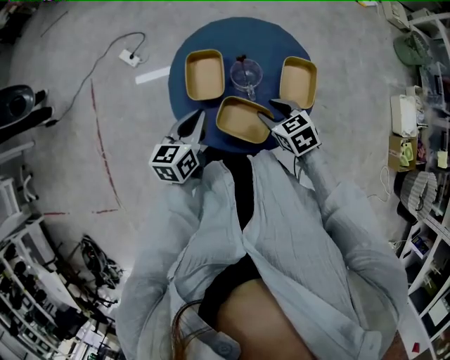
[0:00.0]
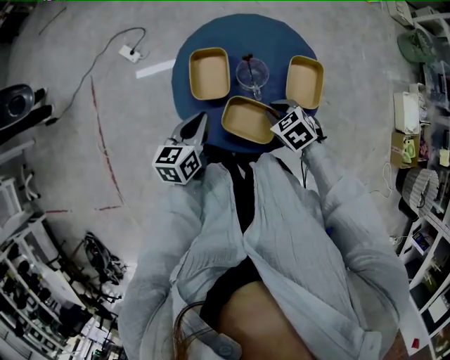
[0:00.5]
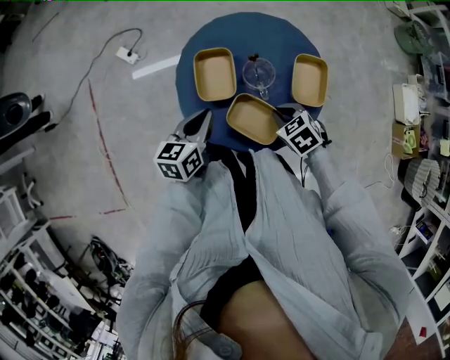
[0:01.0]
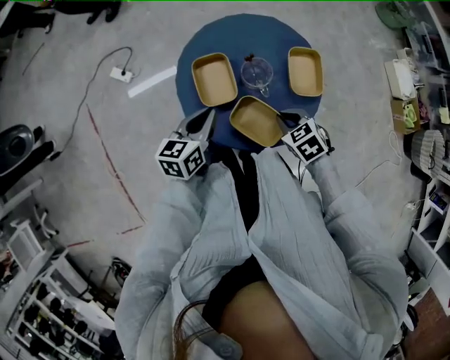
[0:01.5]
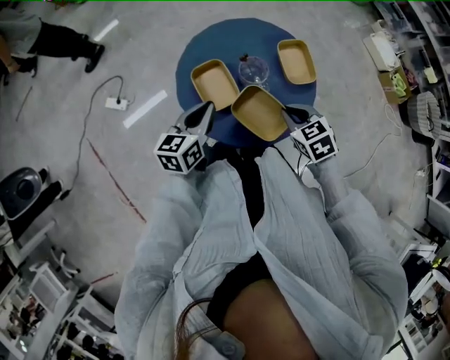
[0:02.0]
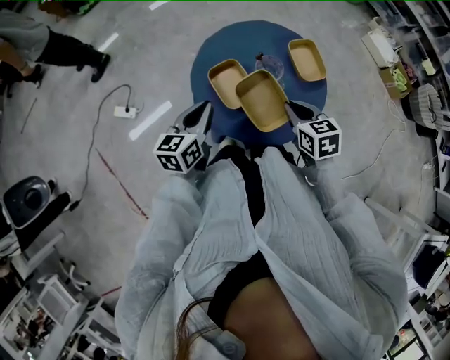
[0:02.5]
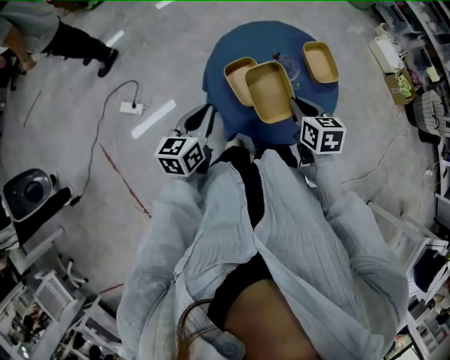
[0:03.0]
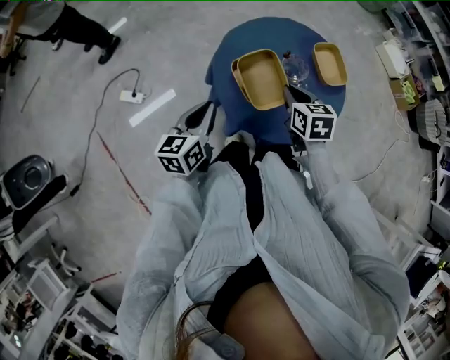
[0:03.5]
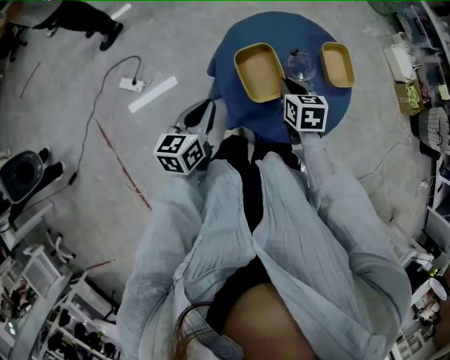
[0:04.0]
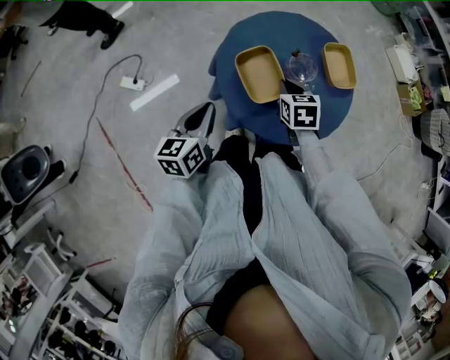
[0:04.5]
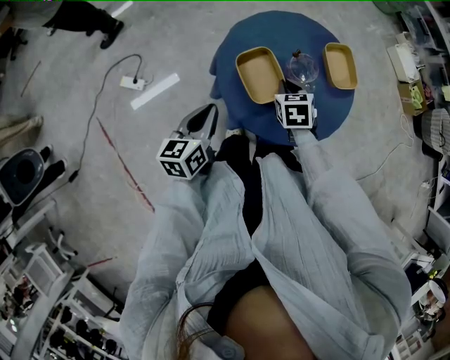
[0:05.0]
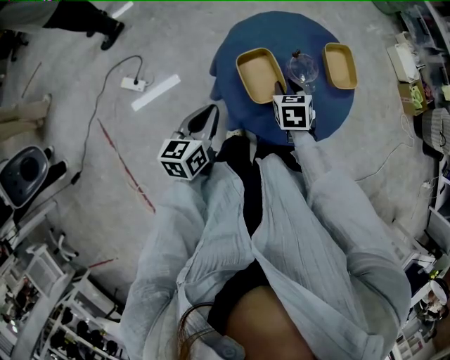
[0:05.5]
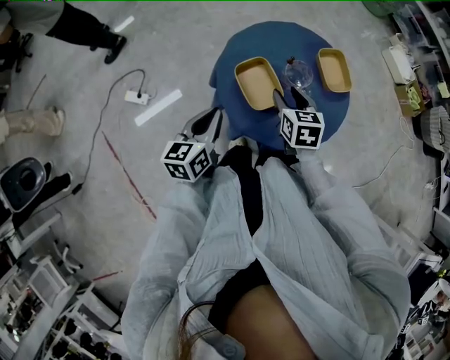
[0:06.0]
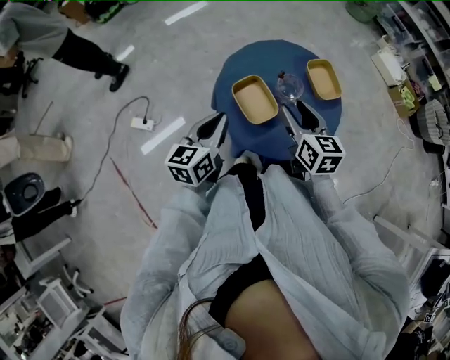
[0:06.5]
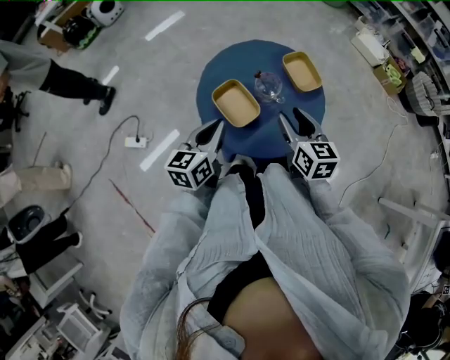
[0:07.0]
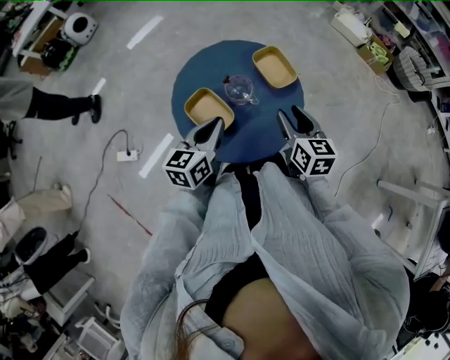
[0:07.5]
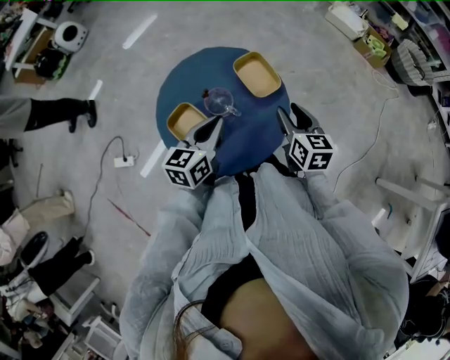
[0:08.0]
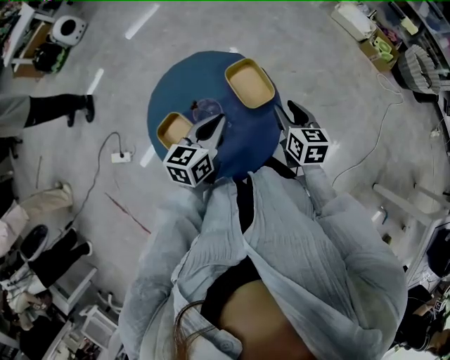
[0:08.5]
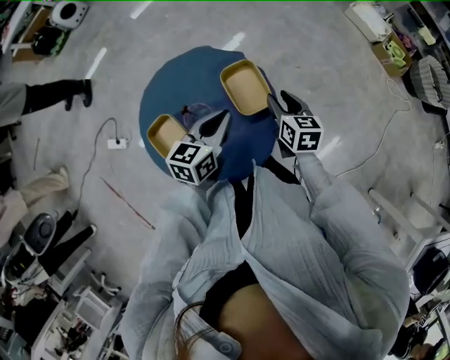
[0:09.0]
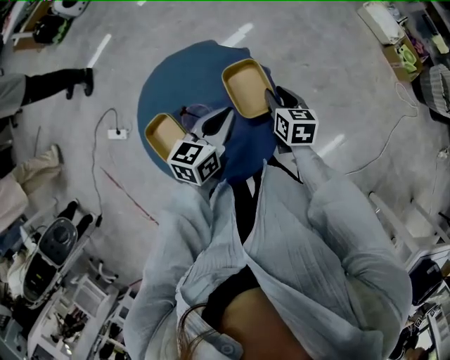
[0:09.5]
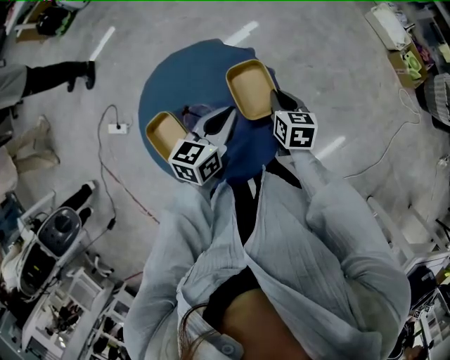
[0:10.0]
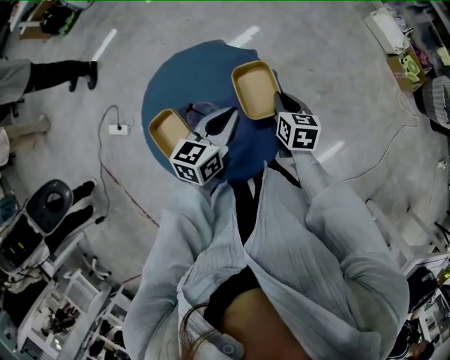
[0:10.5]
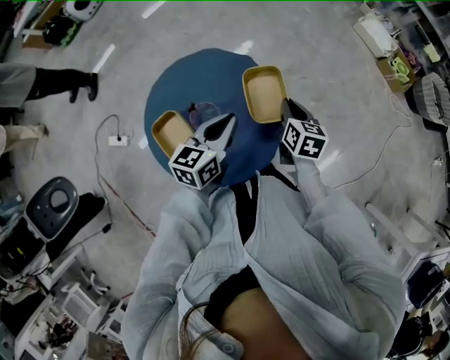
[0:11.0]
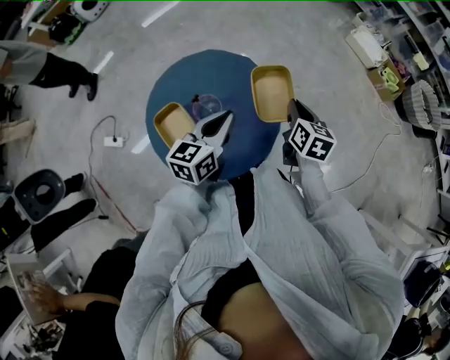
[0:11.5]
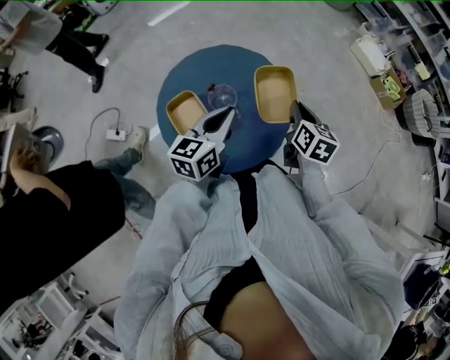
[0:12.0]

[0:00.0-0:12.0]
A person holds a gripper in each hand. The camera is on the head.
0:00.0 to 0:02.0: The right gripper ends up approximately 5 cm from where it was, swivels approximately 30 degrees, and closes. The left gripper changes place by about 10 cm, and turns by some 30 degrees.
0:02.0 to 0:04.0: The right gripper goes approximately 15 cm to the left and forward, and rotates roughly 30 degrees; the left gripper moves to the left, some 10 cm.
0:04.0 to 0:06.0: The right gripper opens.
0:06.0 to 0:08.0: The left gripper is displaced to the right and forward by approximately 20 cm, and rotates some 20 degrees. The right gripper moves to the right, some 20 cm, and swivels some 20 degrees.
0:08.0 to 0:10.0: The left gripper heads forward and to the right, covering approximately 15 cm; the right gripper heads forward and downward, covering roughly 20 cm, and closes.
0:10.0 to 0:12.0: The right gripper travels upward and backward by some 15 cm. The left gripper heads backward and upward, covering about 10 cm.

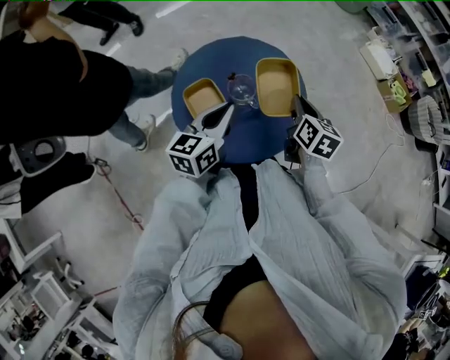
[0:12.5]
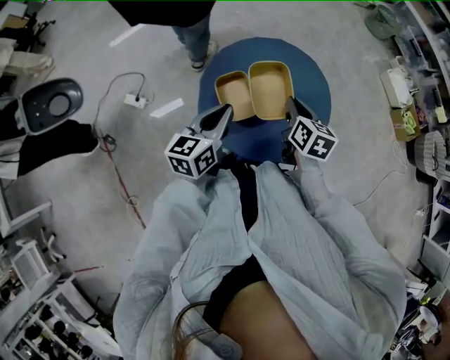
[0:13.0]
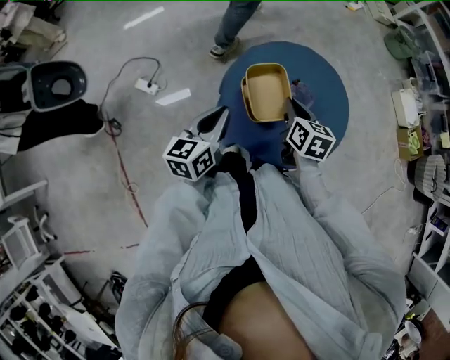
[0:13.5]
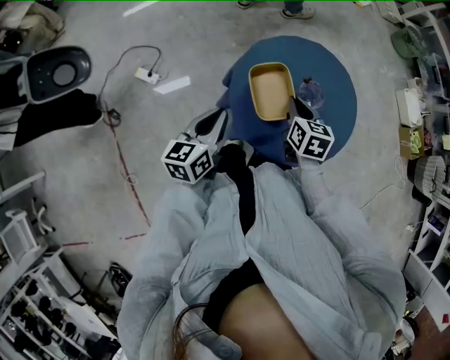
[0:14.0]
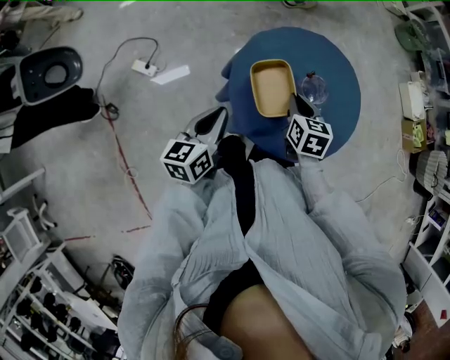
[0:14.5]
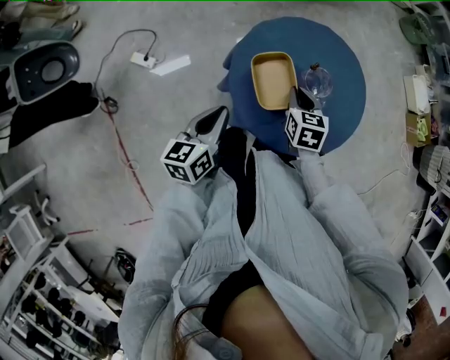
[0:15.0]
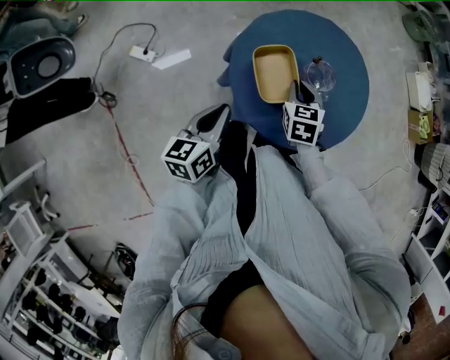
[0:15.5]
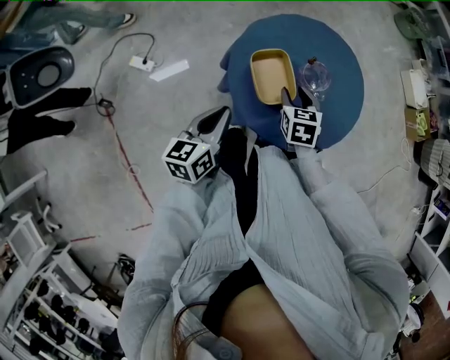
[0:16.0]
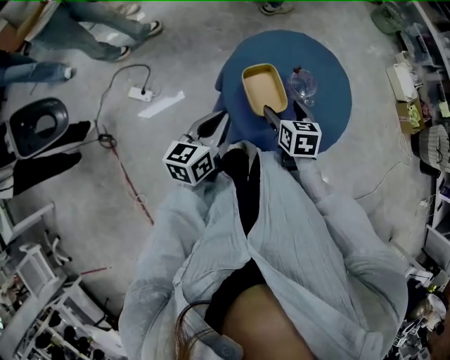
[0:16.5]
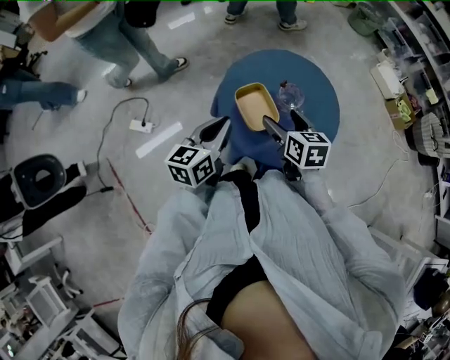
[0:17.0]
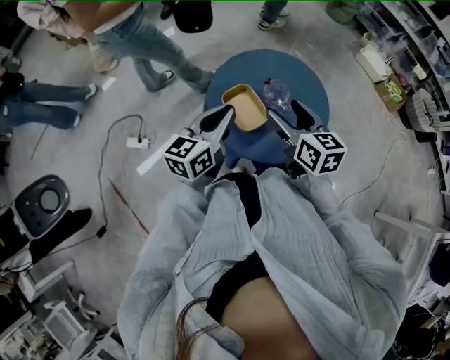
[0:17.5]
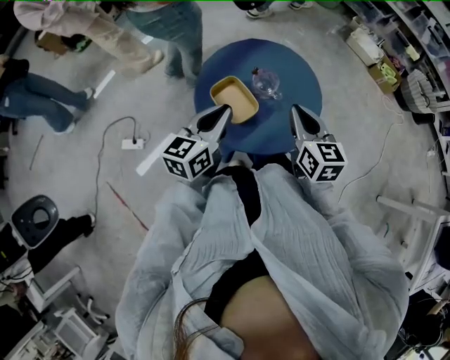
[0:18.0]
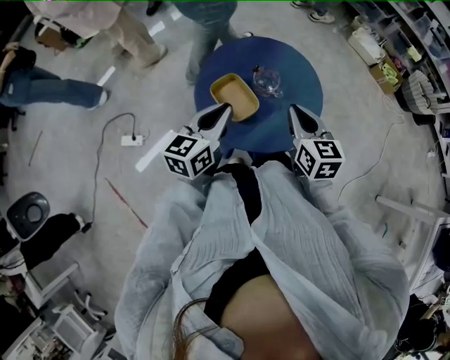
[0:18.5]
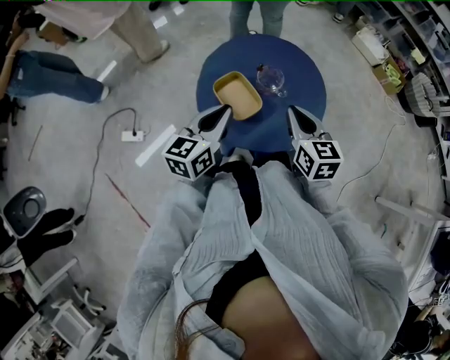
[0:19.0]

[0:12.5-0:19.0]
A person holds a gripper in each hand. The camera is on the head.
0:12.5 to 0:14.5: The two grippers go roughly 20 cm to the left. The right gripper swivels approximately 30 degrees. The left gripper turns by roughly 20 degrees.
0:14.5 to 0:17.0: The right gripper shifts about 5 cm upward, and opens up.
0:17.0 to 0:19.0: Both grippers move to the right, roughly 5 cm. The right gripper closes its fingers.

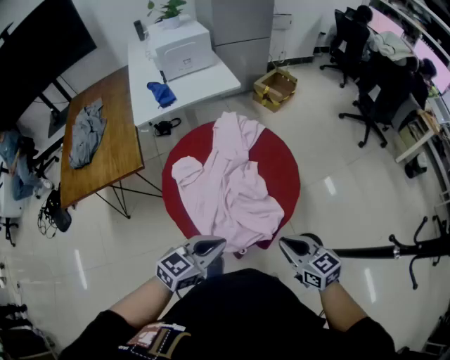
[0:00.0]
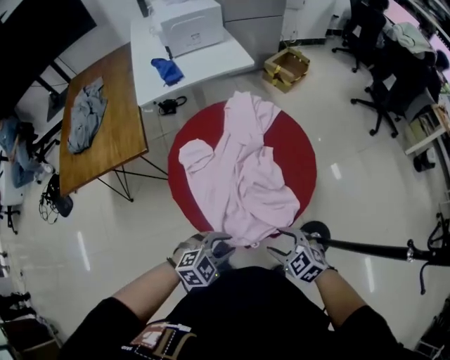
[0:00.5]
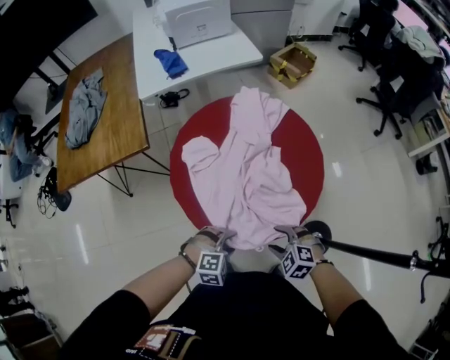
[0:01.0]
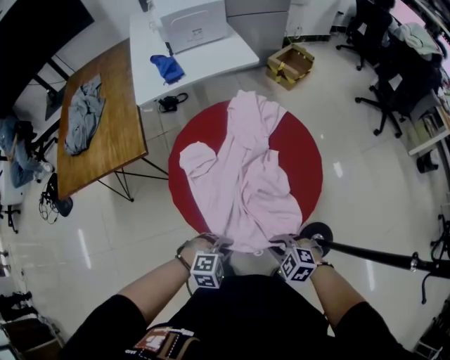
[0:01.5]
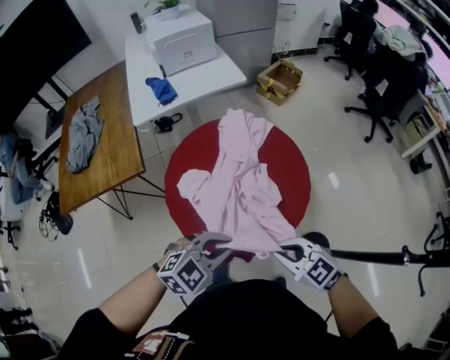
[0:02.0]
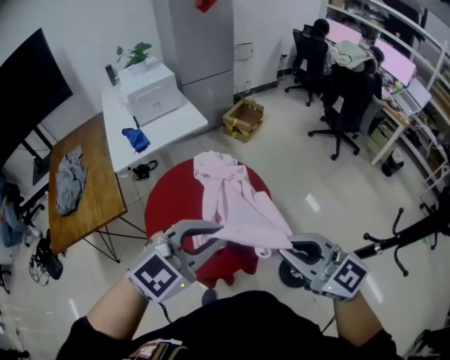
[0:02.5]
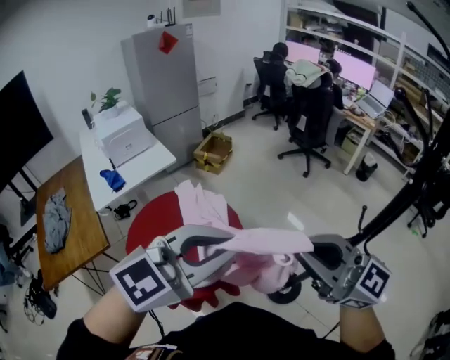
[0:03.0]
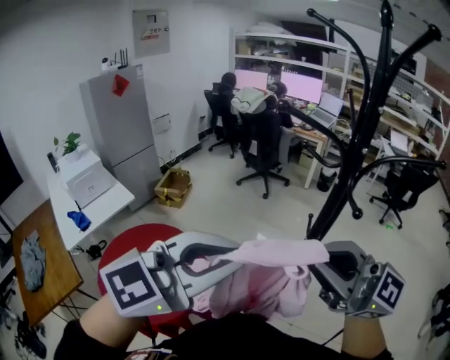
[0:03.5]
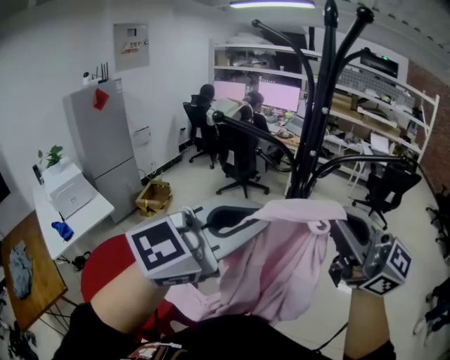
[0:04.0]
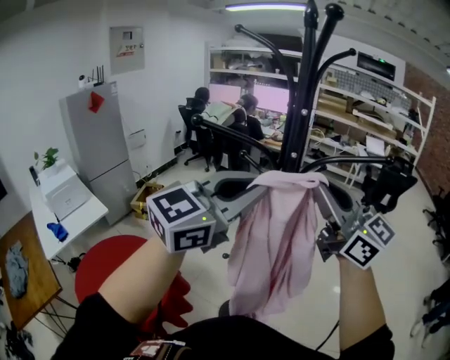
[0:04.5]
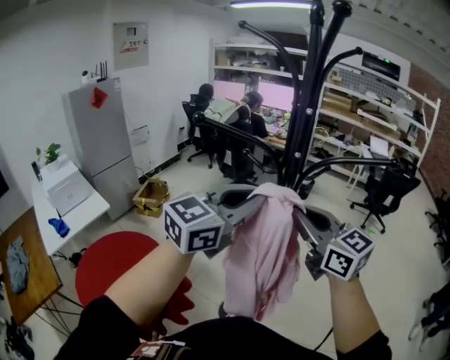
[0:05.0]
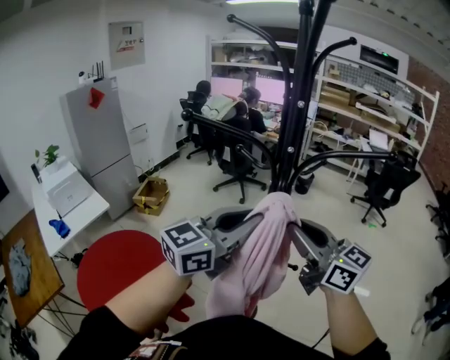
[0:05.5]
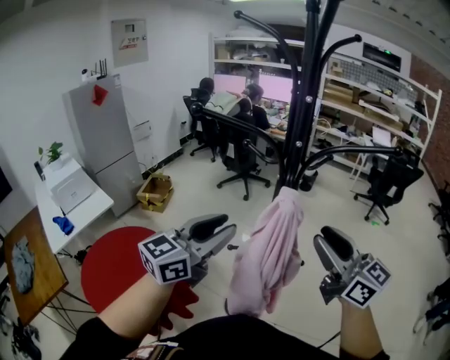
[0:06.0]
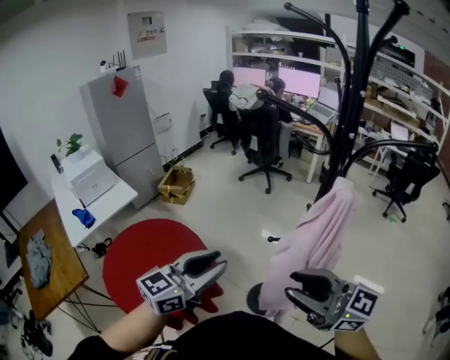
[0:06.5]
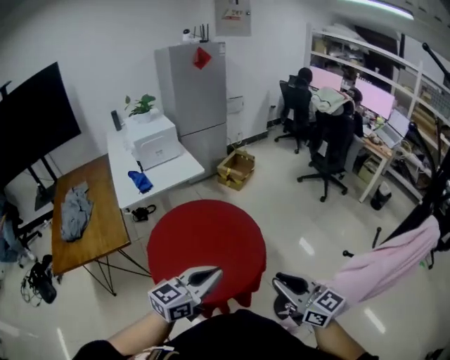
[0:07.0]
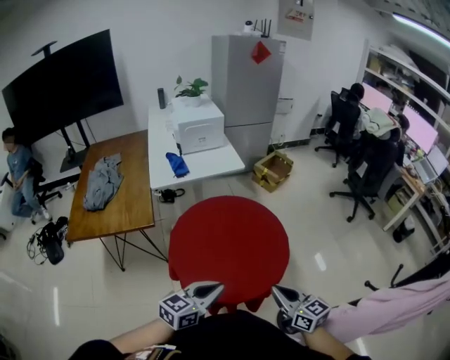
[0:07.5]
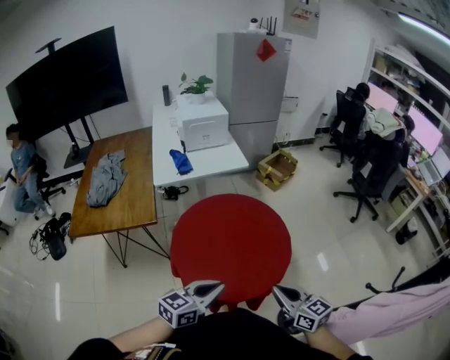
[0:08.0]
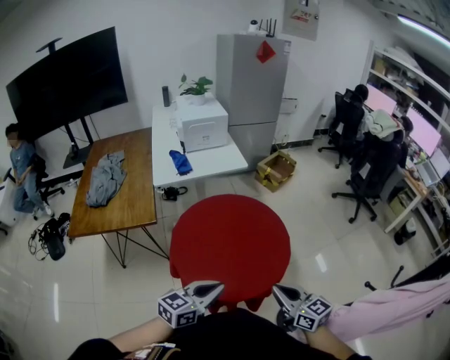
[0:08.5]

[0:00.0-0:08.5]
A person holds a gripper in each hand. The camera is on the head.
0:00.0 to 0:02.0: The right gripper shifts approximately 5 cm to the left, goes downward and returns, approximately 15 cm each way, swivels roughly 30 degrees, and opens, then closes again. The left gripper travels downward and back again, about 20 cm each way, rotates some 30 degrees, and opens, then closes again.
0:02.0 to 0:04.0: The pair of grippers is taken about 40 cm. Both grippers move upward, approximately 50 cm. The left gripper tilts its fingers approximately 40 degrees upward. Meanwhile the right gripper tips its fingers upward by about 60 degrees.
0:04.0 to 0:06.5: The left gripper travels downward and to the left by approximately 25 cm, swivels some 40 degrees, and opens up. Meanwhile the right gripper moves downward, to the left and backward, about 20 cm, swivels approximately 20 degrees, and opens.
0:06.5 to 0:08.5: The right gripper moves about 40 cm, turns by about 30 degrees, and closes up; the left gripper moves some 35 cm, turns by roughly 40 degrees, and closes.
